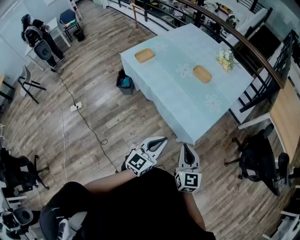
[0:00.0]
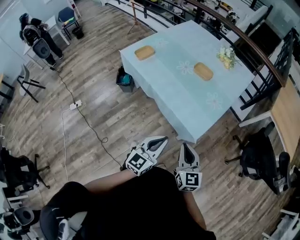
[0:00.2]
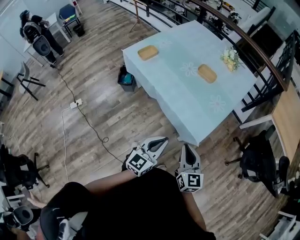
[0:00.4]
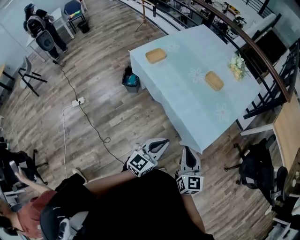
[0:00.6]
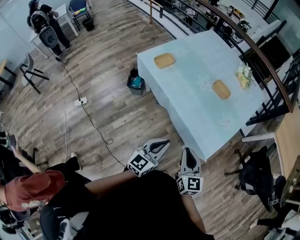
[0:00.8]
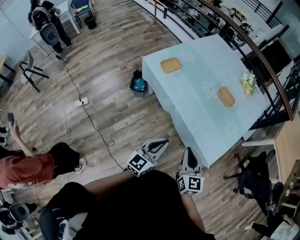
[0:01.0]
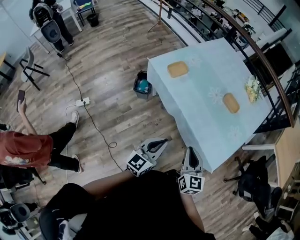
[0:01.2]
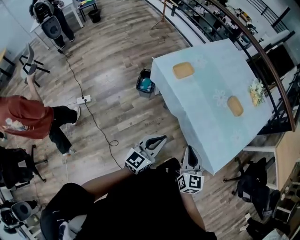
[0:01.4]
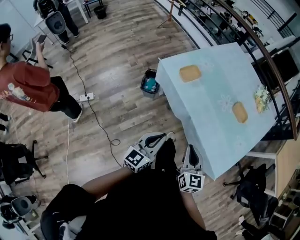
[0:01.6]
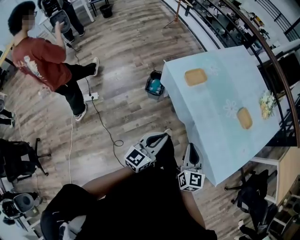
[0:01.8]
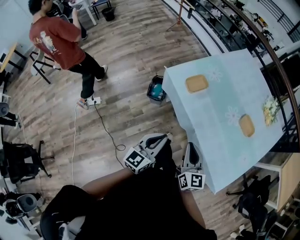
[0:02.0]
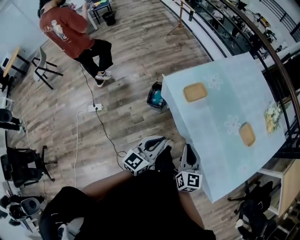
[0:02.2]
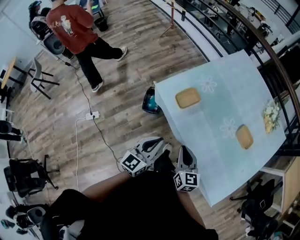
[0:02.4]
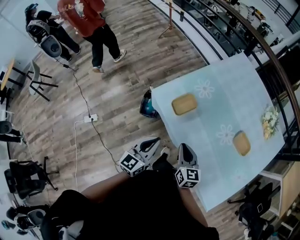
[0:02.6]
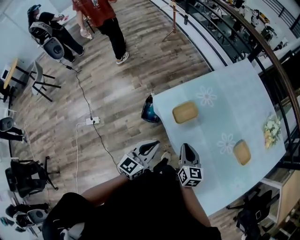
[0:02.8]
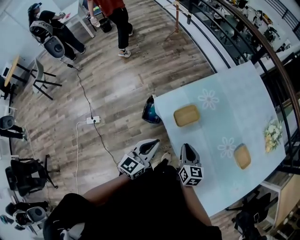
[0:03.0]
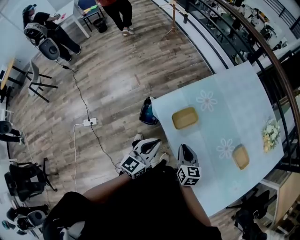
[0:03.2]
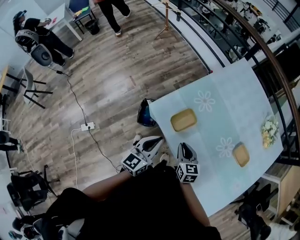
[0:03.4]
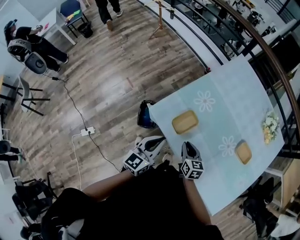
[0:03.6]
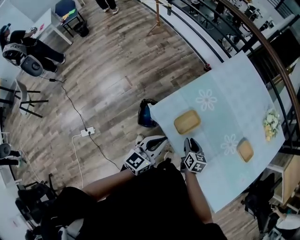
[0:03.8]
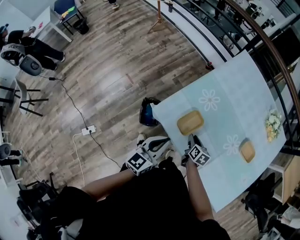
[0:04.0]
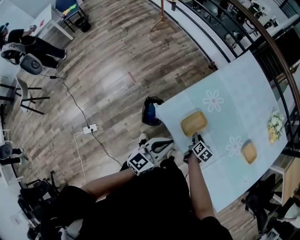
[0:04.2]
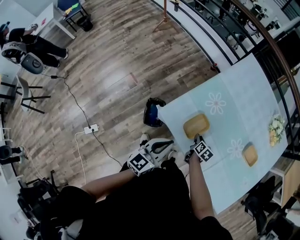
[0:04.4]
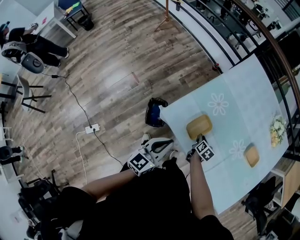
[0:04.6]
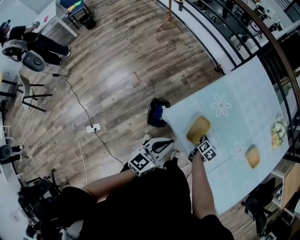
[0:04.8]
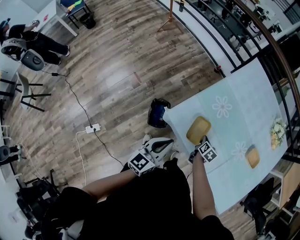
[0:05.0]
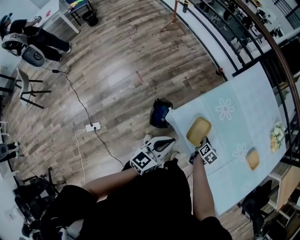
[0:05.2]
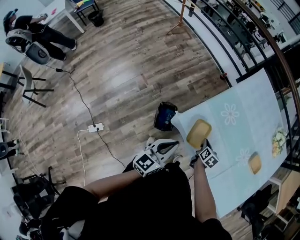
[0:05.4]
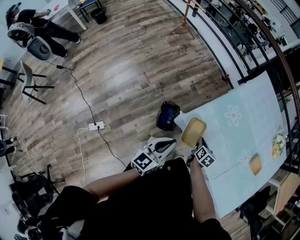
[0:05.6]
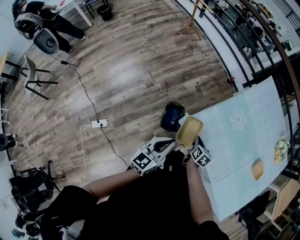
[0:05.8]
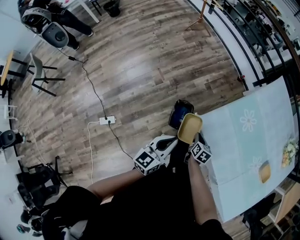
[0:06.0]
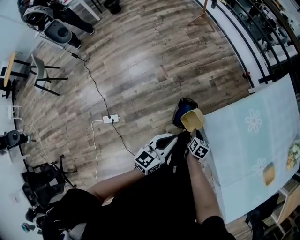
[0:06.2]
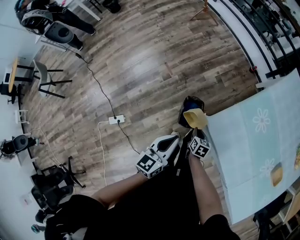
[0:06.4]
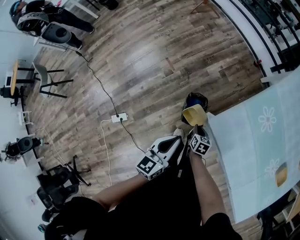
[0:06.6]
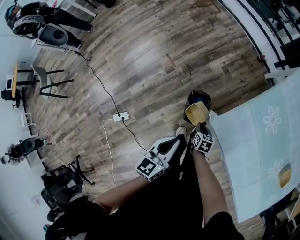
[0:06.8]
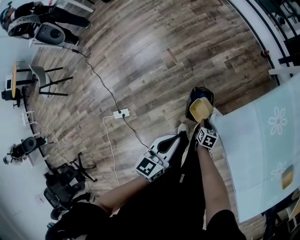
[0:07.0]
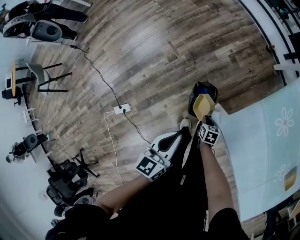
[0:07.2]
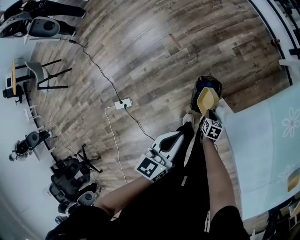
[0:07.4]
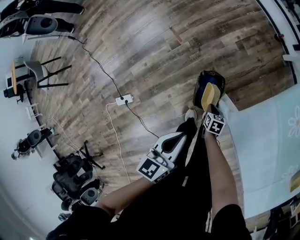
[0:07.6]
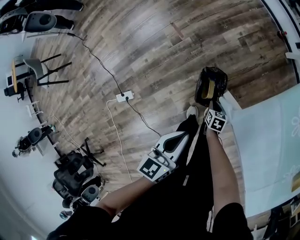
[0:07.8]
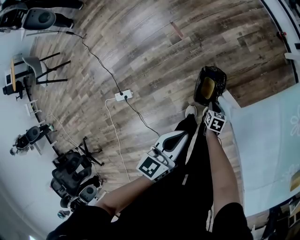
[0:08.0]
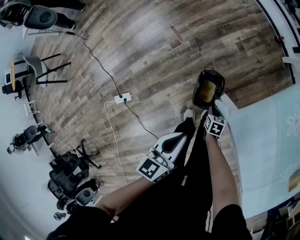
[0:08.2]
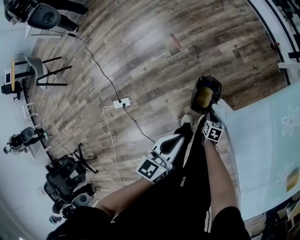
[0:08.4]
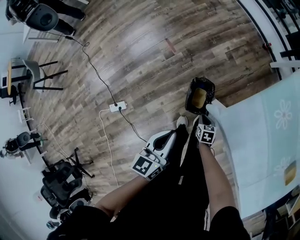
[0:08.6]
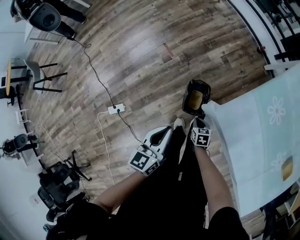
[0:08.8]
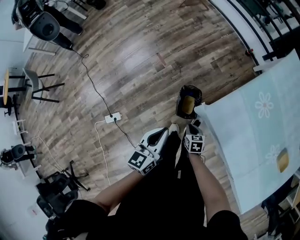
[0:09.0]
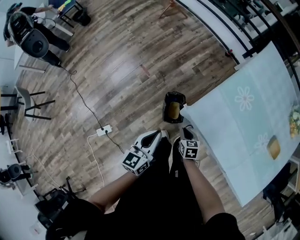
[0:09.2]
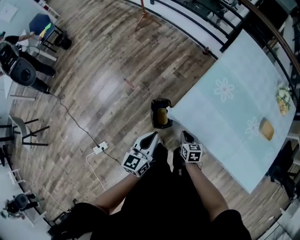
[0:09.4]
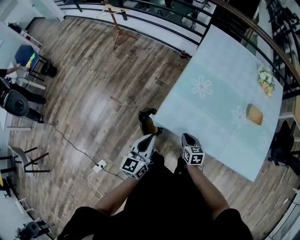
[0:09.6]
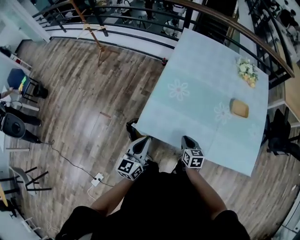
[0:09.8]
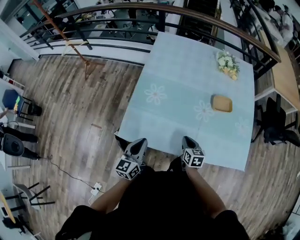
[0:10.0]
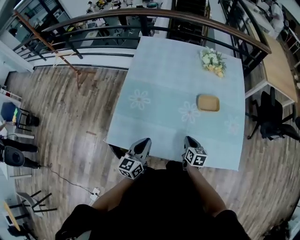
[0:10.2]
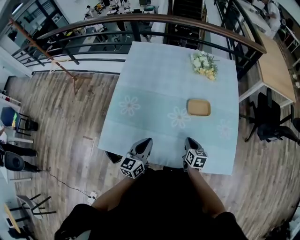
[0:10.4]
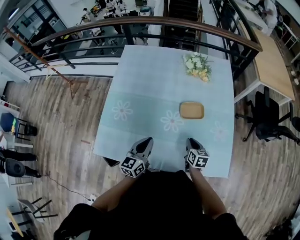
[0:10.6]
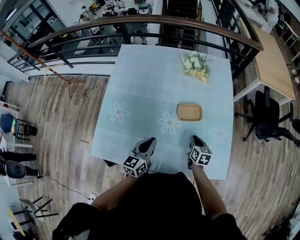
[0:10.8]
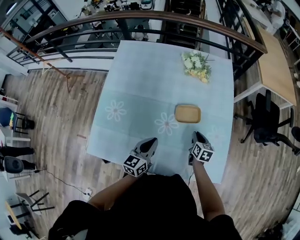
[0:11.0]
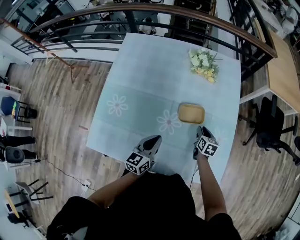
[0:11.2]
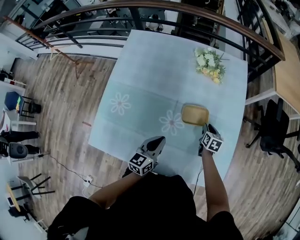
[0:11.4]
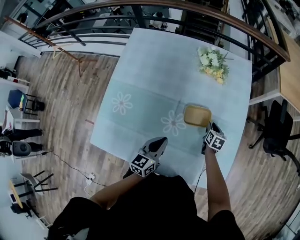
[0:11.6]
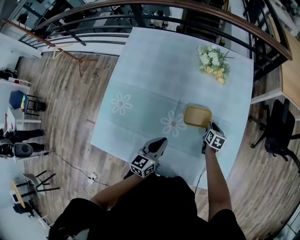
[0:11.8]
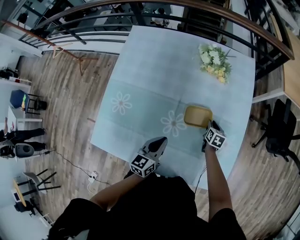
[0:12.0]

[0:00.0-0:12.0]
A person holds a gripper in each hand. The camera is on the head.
0:00.0 to 0:01.6: The two grippers go approximately 40 cm to the left and forward.
0:01.6 to 0:03.0: Both grippers travel together forward, about 30 cm.
0:03.0 to 0:04.4: The left gripper moves forward and to the left, approximately 10 cm, and rotates about 20 degrees; the right gripper is displaced downward and forward by approximately 20 cm, and rotates some 50 degrees.
0:04.4 to 0:06.0: The two grippers go some 20 cm to the left.
0:06.0 to 0:07.6: The left gripper travels downward by roughly 15 cm, while the right gripper is displaced downward by roughly 30 cm.
0:07.6 to 0:09.0: The right gripper heads upward and backward, covering about 20 cm, while the left gripper heads upward, covering roughly 10 cm.
0:09.0 to 0:10.4: Both grippers are carried roughly 60 cm. The right gripper turns by about 60 degrees. Meanwhile the left gripper changes its angle by about 40 degrees.
0:10.4 to 0:12.0: The left gripper moves forward and to the right, some 20 cm. The right gripper moves forward, to the right and downward, about 30 cm.

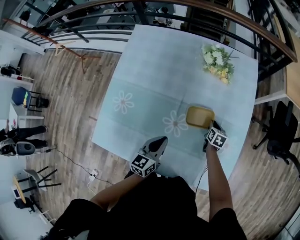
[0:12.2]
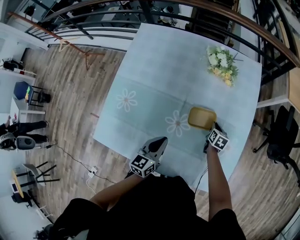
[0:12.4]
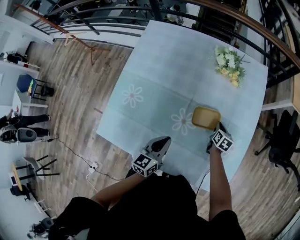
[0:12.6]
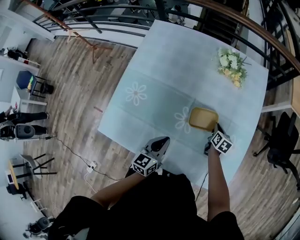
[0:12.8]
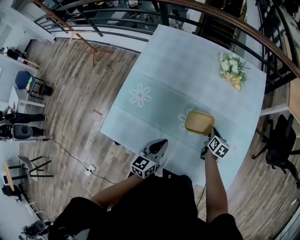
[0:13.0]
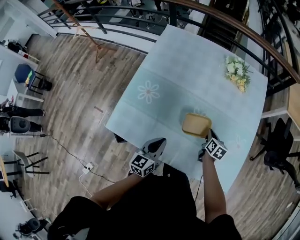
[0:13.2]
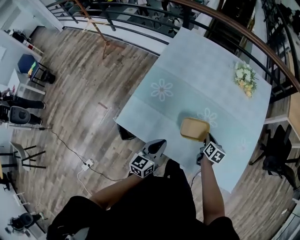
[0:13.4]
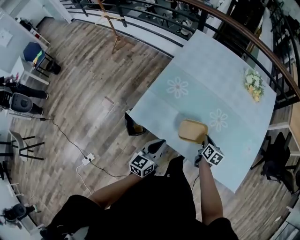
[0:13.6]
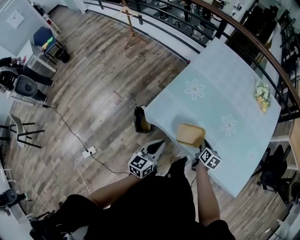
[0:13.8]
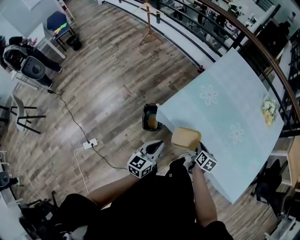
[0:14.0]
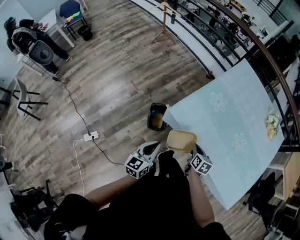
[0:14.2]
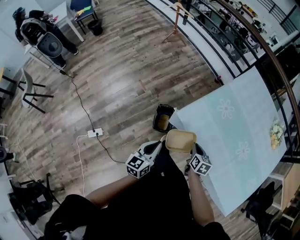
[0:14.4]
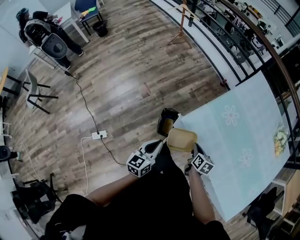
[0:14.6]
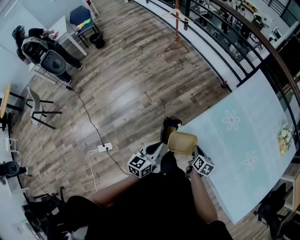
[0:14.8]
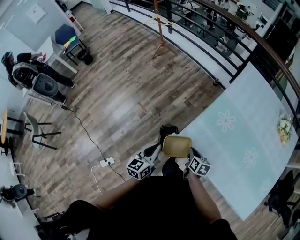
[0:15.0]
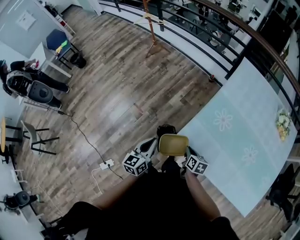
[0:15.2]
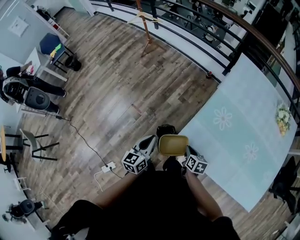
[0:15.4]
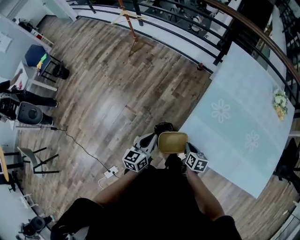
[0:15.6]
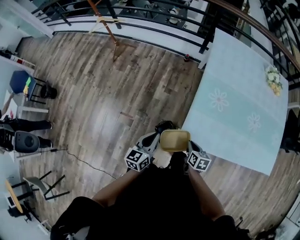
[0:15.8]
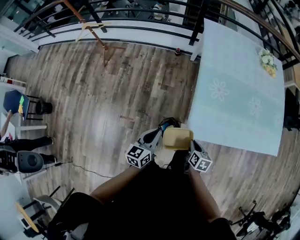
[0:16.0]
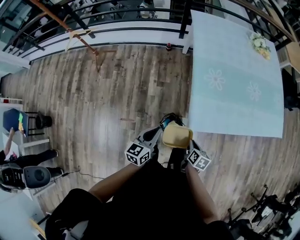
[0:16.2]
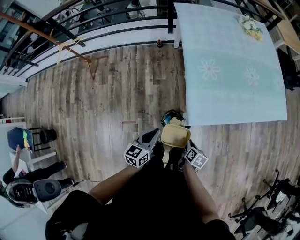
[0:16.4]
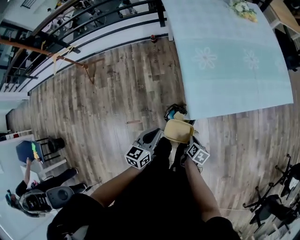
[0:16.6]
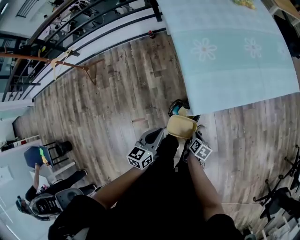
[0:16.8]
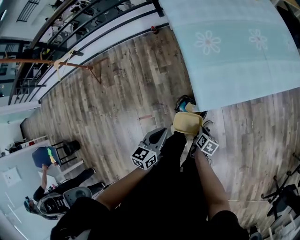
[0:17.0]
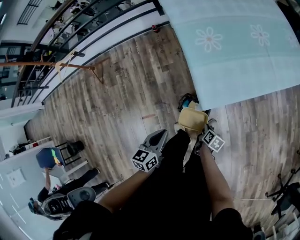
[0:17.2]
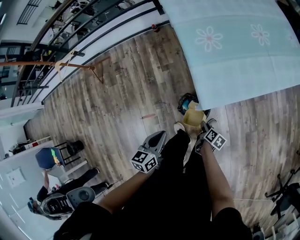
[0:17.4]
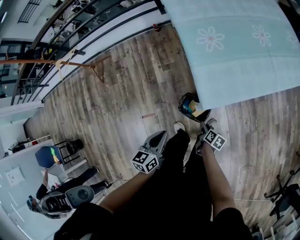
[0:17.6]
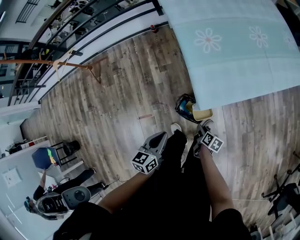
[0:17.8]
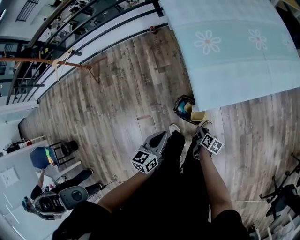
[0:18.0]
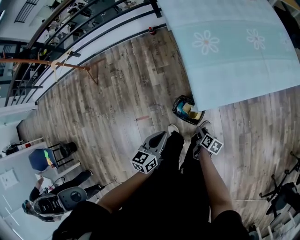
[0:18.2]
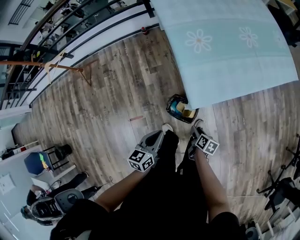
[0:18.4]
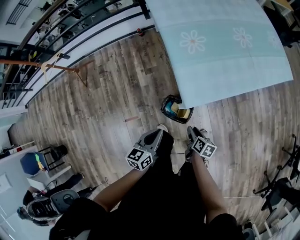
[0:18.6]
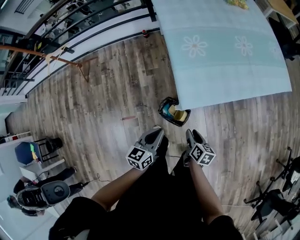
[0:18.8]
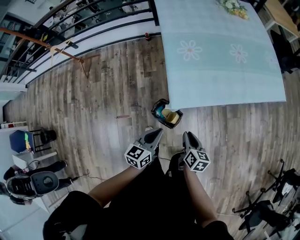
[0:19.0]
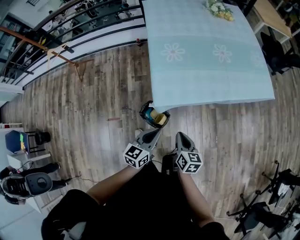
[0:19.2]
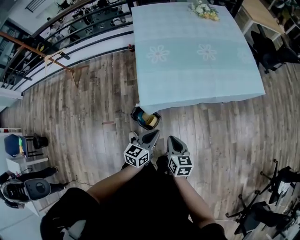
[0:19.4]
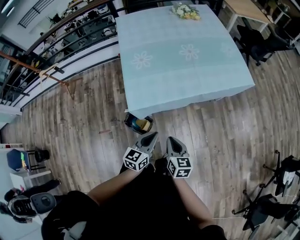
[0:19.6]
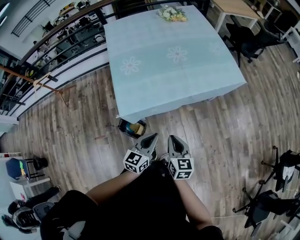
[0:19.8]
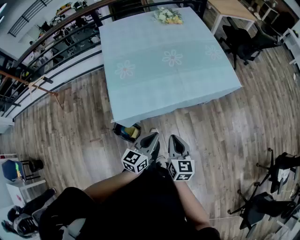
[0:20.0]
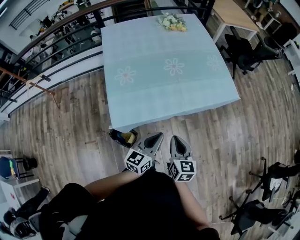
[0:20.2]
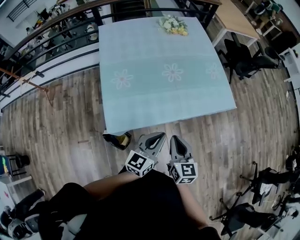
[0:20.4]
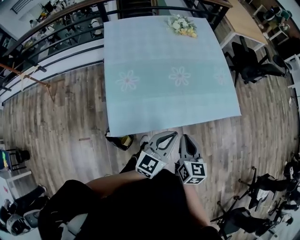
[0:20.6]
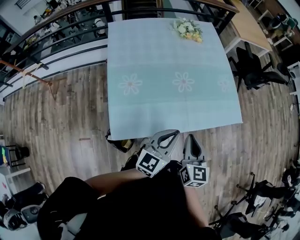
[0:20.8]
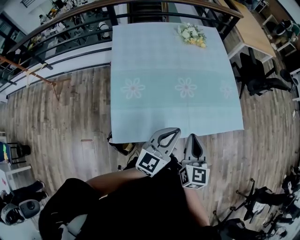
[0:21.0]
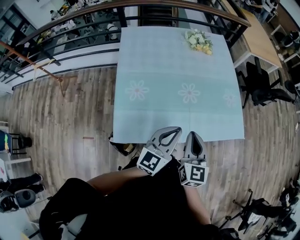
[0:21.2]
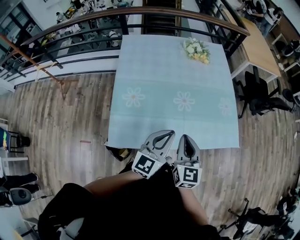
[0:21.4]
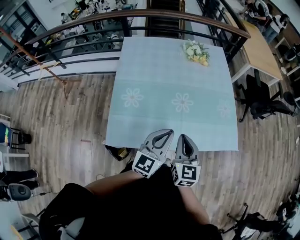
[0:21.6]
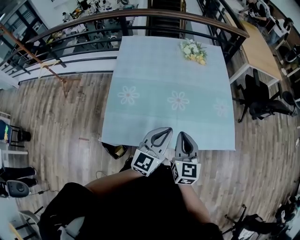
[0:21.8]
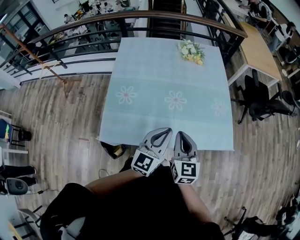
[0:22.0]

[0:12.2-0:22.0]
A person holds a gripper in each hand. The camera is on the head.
0:12.2 to 0:13.6: The left gripper is displaced backward and to the left by approximately 35 cm. Meanwhile the right gripper travels to the left and backward by some 35 cm.
0:13.6 to 0:15.0: The left gripper shifts by about 35 cm. Meanwhile the right gripper ends up about 40 cm from where it was, and rotates about 20 degrees.
0:15.0 to 0:16.4: The right gripper shifts by about 15 cm, and changes its angle by some 60 degrees; the left gripper shifts by roughly 15 cm, and turns by roughly 50 degrees.
0:16.4 to 0:17.8: The left gripper changes place by approximately 5 cm. Meanwhile the right gripper shifts some 10 cm downward, and opens.
0:17.8 to 0:19.2: The left gripper goes roughly 20 cm to the right, while the right gripper travels upward and to the right by about 25 cm, rotates some 40 degrees, and closes up.
0:19.2 to 0:20.6: The left gripper heads to the right, forward and upward, covering some 35 cm. Meanwhile the right gripper goes some 30 cm forward, to the right and upward.
0:20.6 to 0:22.0: The right gripper moves forward, to the right and upward, about 15 cm, and swivels approximately 20 degrees. The left gripper heads forward and to the right, covering roughly 10 cm, and turns by some 20 degrees.

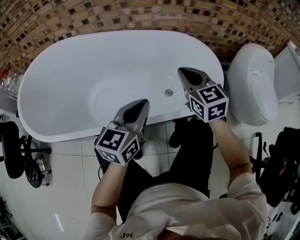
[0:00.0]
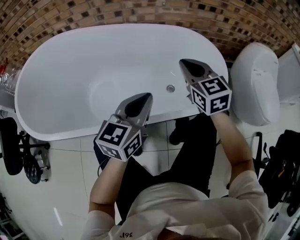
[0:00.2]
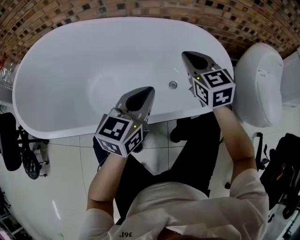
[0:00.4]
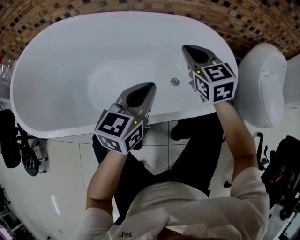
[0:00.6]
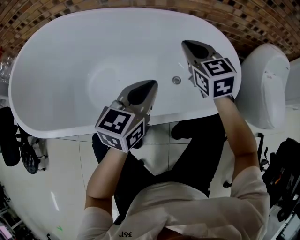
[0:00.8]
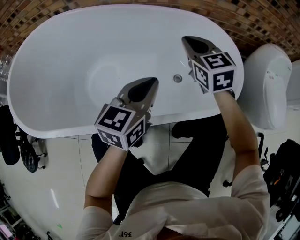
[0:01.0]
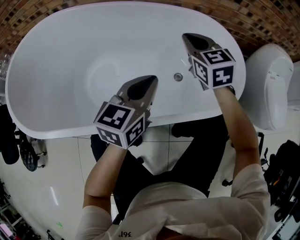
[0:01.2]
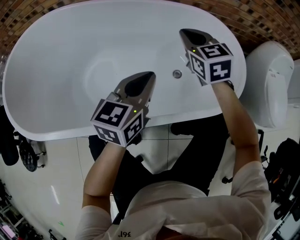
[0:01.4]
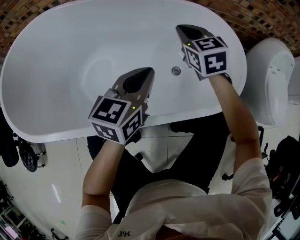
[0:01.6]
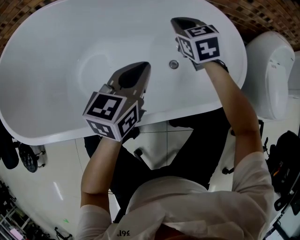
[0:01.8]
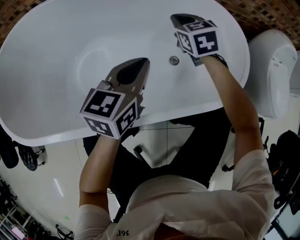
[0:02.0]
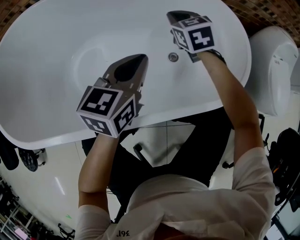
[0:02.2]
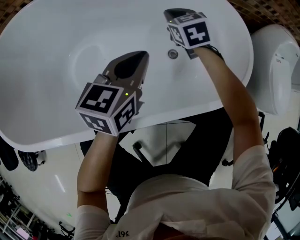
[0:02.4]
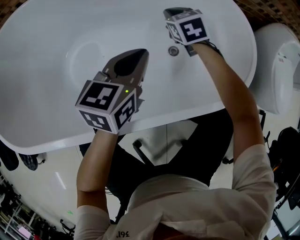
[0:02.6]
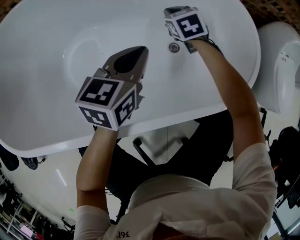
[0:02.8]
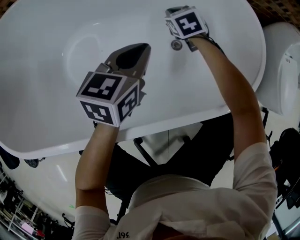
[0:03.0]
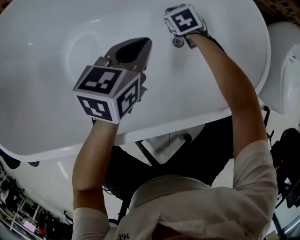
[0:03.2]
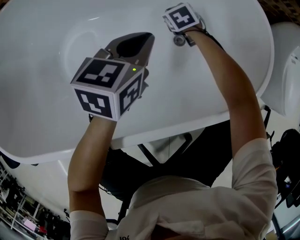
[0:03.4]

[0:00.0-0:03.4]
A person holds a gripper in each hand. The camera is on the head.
0:00.0 to 0:01.6: Both grippers travel together forward and downward, about 15 cm.
0:01.6 to 0:03.4: The left gripper goes roughly 15 cm downward and forward. The right gripper travels downward by roughly 30 cm, and changes its angle by roughly 30 degrees.
